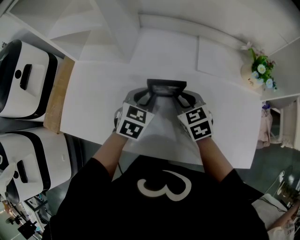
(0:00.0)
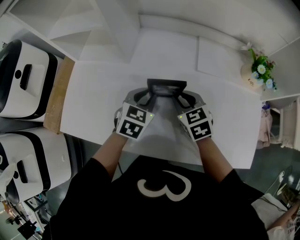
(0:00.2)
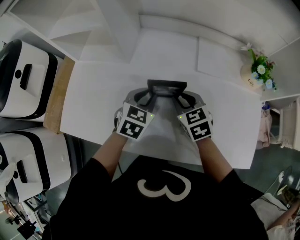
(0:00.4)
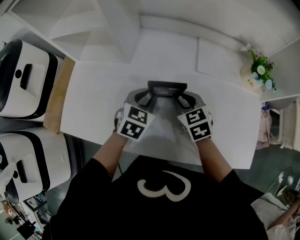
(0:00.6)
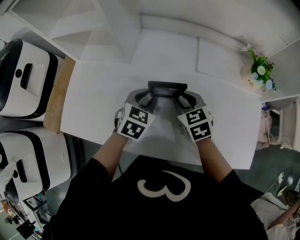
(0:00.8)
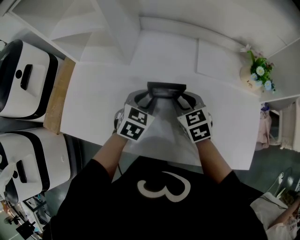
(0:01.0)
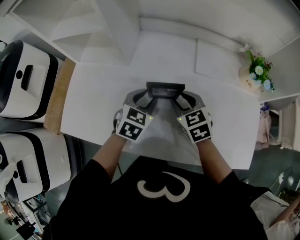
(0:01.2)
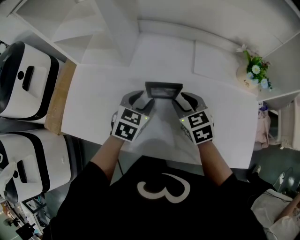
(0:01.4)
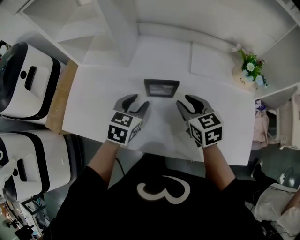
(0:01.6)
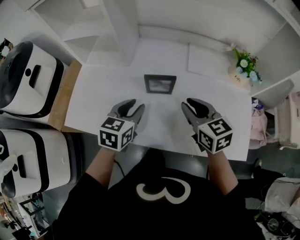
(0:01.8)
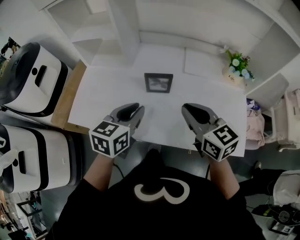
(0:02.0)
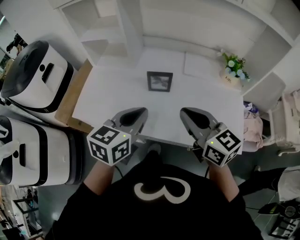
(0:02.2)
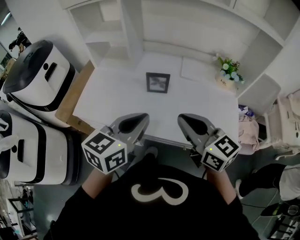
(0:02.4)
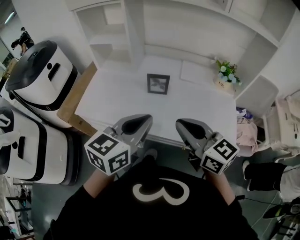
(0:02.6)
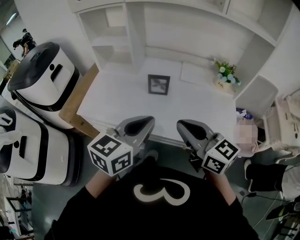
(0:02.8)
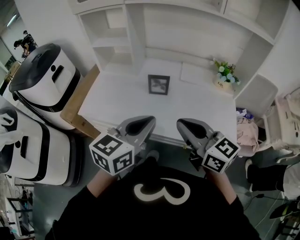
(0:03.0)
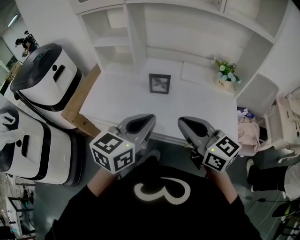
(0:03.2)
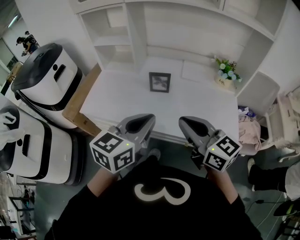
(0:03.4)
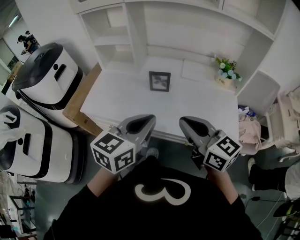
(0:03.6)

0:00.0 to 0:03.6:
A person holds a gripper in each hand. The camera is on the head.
0:00.0 to 0:01.8: The left gripper goes some 10 cm backward and upward. The right gripper shifts about 15 cm upward and backward.
0:01.8 to 0:03.6: Both grippers move backward and upward, some 30 cm. The left gripper rotates roughly 20 degrees, and closes its fingers. The right gripper swivels roughly 20 degrees, and closes.

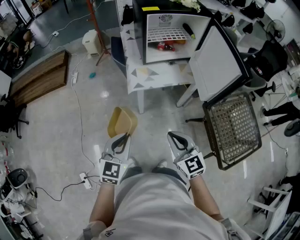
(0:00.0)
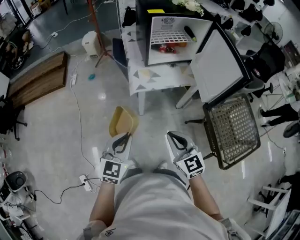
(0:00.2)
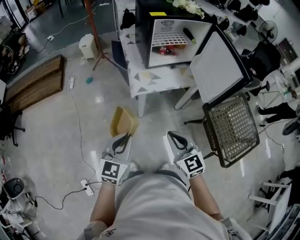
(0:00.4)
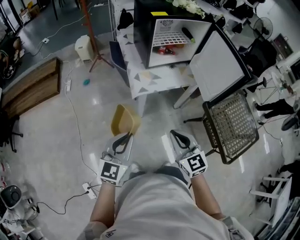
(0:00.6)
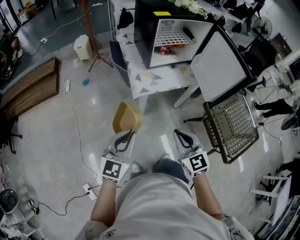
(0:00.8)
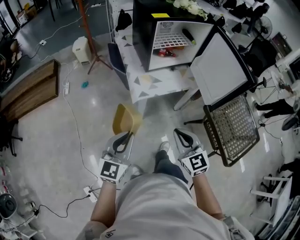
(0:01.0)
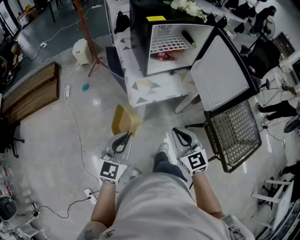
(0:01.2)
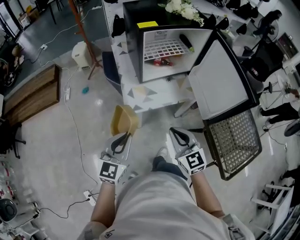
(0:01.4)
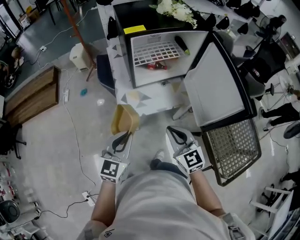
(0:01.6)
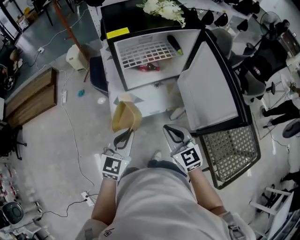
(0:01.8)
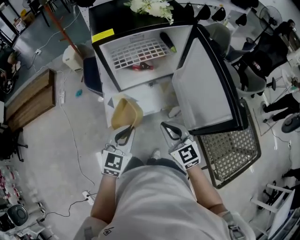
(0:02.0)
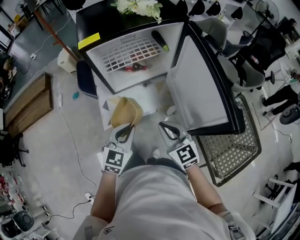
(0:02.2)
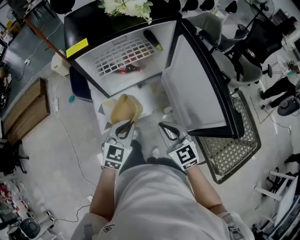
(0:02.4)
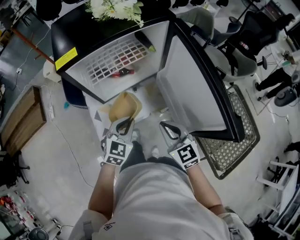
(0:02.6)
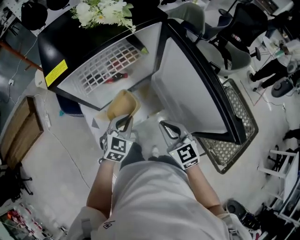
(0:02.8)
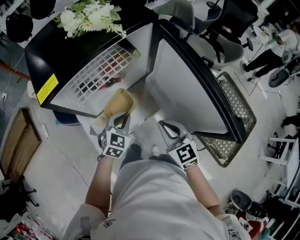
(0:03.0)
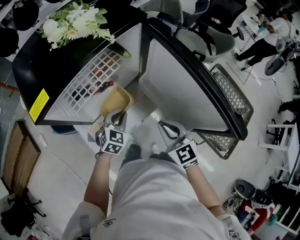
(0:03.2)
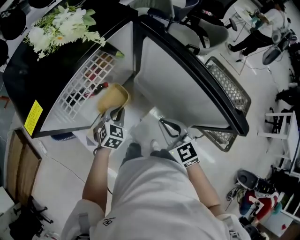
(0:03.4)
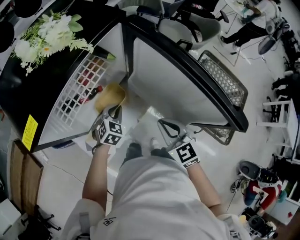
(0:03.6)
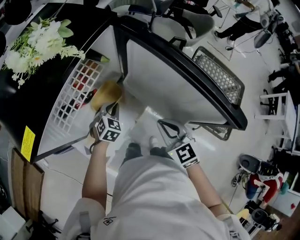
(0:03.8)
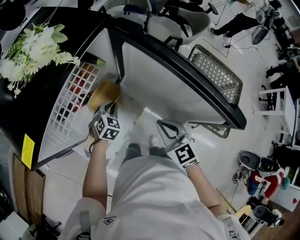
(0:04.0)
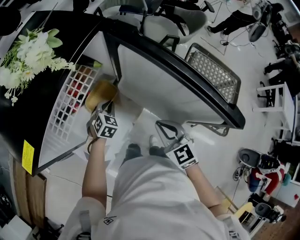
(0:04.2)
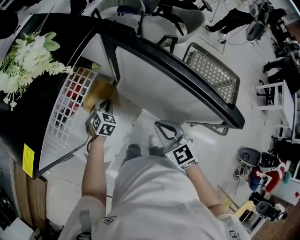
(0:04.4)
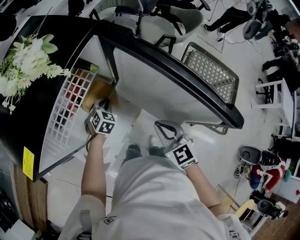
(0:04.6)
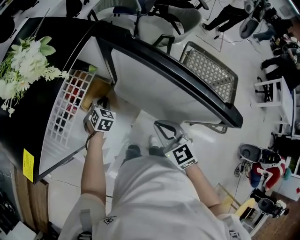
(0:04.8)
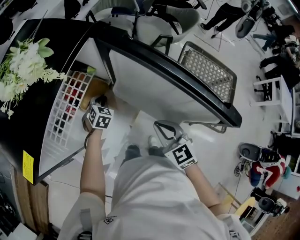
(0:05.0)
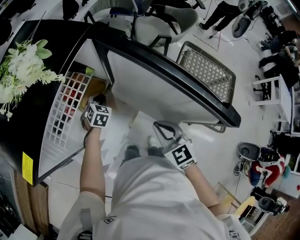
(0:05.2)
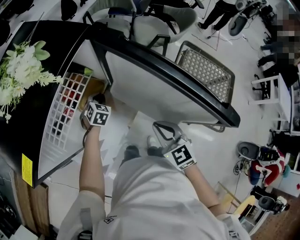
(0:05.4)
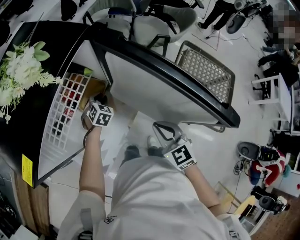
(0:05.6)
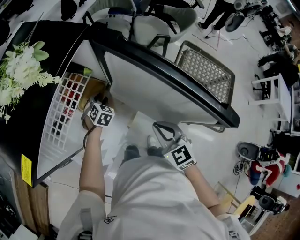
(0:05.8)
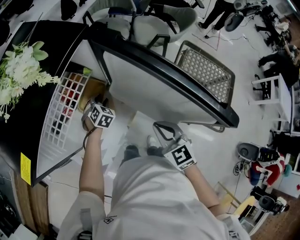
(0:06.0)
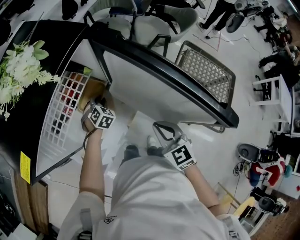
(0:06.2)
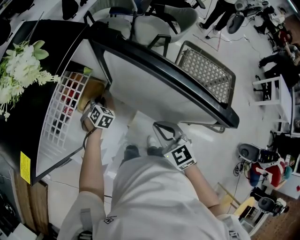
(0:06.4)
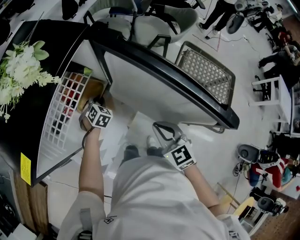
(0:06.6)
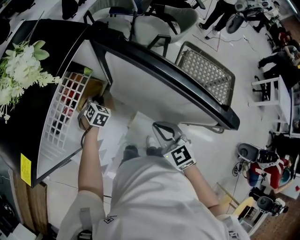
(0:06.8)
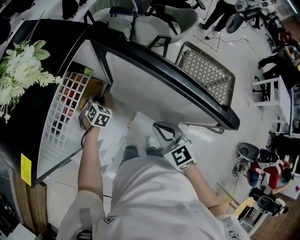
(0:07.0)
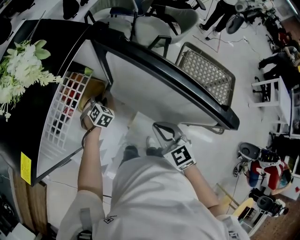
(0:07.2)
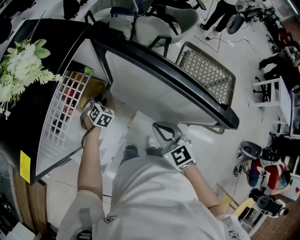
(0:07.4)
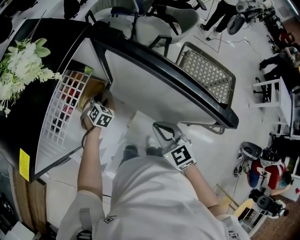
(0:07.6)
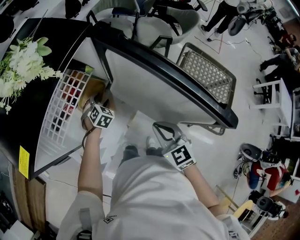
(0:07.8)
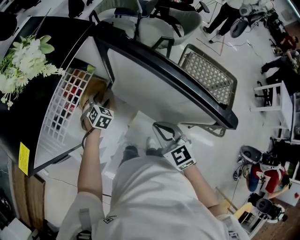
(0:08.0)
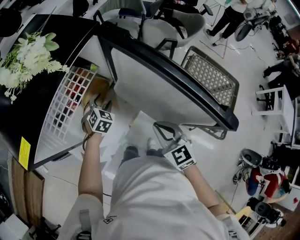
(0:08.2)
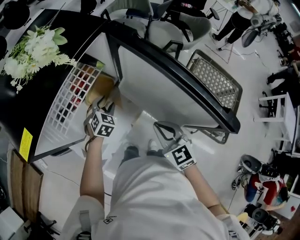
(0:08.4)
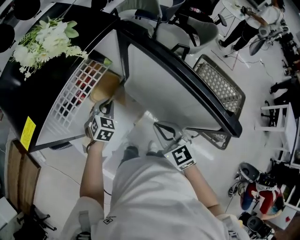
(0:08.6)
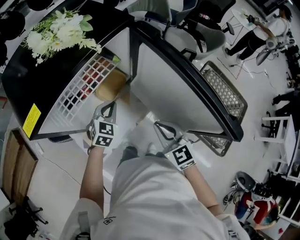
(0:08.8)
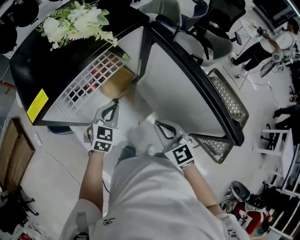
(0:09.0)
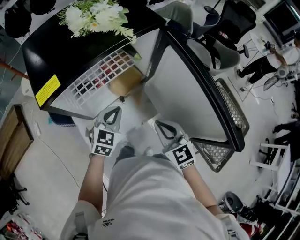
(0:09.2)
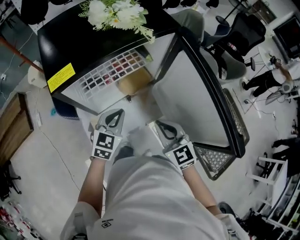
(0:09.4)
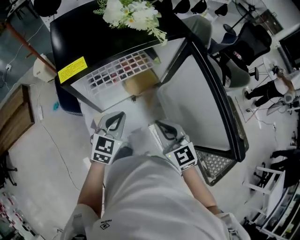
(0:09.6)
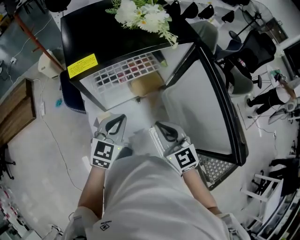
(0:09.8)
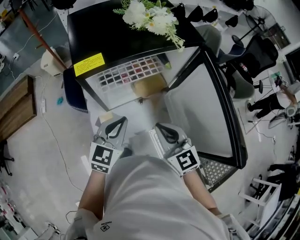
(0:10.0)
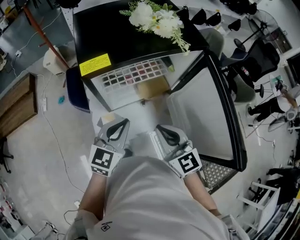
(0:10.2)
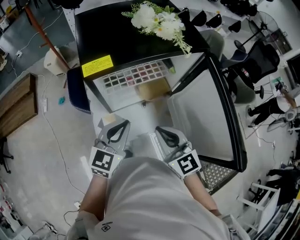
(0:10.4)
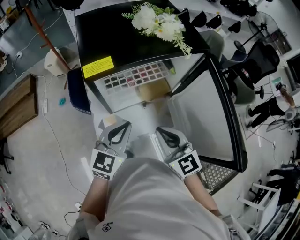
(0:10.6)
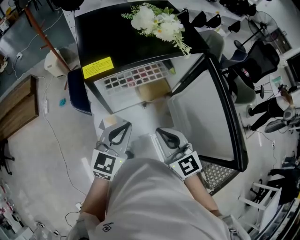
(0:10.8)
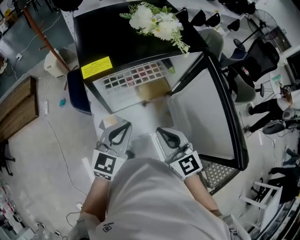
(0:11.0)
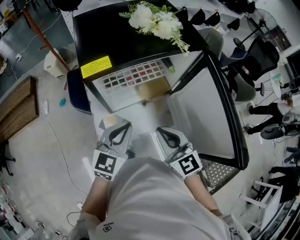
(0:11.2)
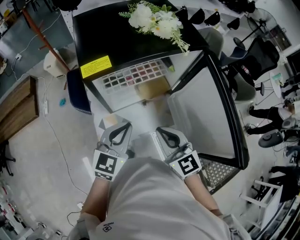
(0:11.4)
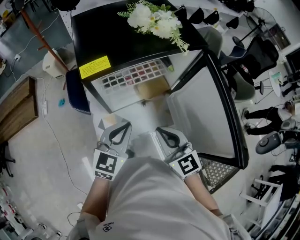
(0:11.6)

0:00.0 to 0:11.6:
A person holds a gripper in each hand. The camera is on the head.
0:00.0 to 0:01.4: Both grippers travel together forward, approximately 15 cm.
0:01.4 to 0:02.8: Both grippers move forward and to the right, roughly 30 cm. The left gripper changes its angle by approximately 30 degrees.
0:02.8 to 0:04.4: The right gripper moves approximately 5 cm, and swivels about 30 degrees. Meanwhile the left gripper travels forward and downward by approximately 20 cm, and rotates roughly 30 degrees.
0:04.4 to 0:05.8: The left gripper moves about 5 cm, and opens.
0:05.8 to 0:07.2: The grippers stay close to where they were, moving slightly.
0:07.2 to 0:08.8: The left gripper moves upward and backward, some 15 cm, turns by roughly 30 degrees, and closes.
0:08.8 to 0:10.2: The right gripper heads to the left and upward, covering roughly 15 cm, and turns by approximately 30 degrees, while the left gripper goes some 20 cm upward, backward and to the left, and turns by some 30 degrees.
0:10.2 to 0:11.6: There are only small adjustments of the grippers.

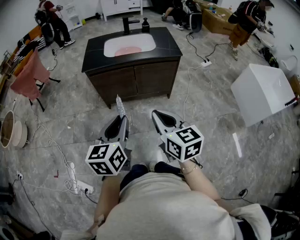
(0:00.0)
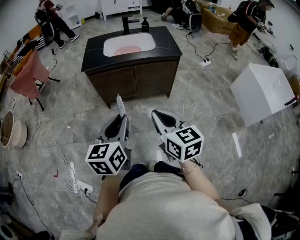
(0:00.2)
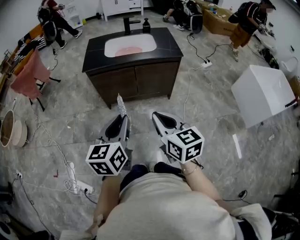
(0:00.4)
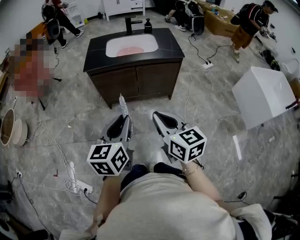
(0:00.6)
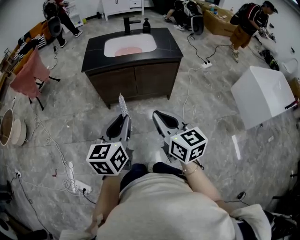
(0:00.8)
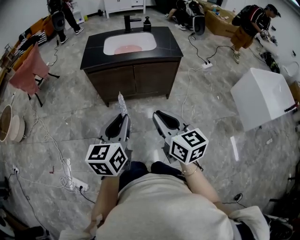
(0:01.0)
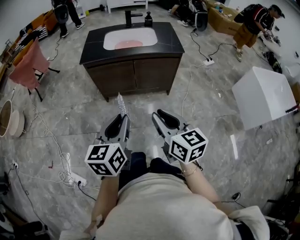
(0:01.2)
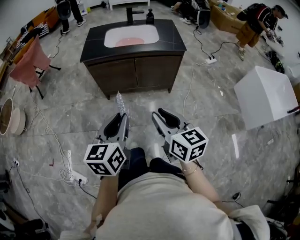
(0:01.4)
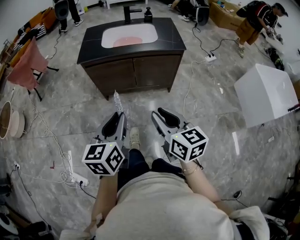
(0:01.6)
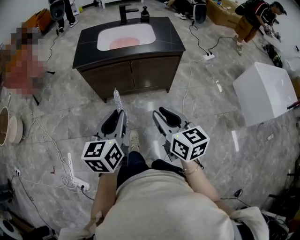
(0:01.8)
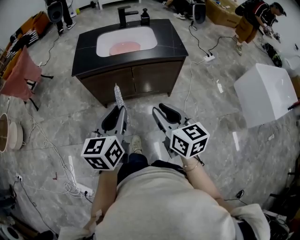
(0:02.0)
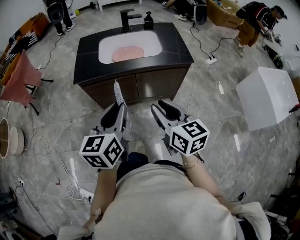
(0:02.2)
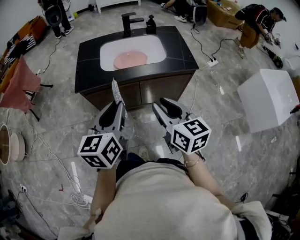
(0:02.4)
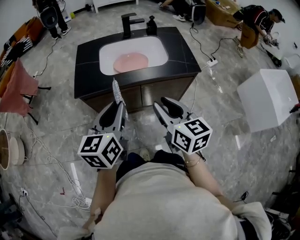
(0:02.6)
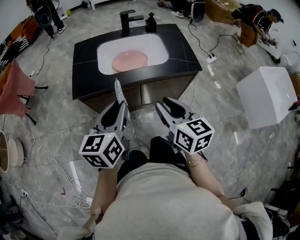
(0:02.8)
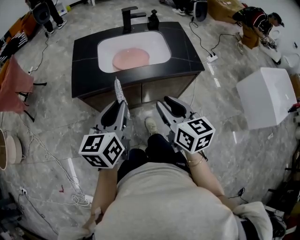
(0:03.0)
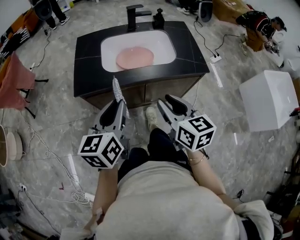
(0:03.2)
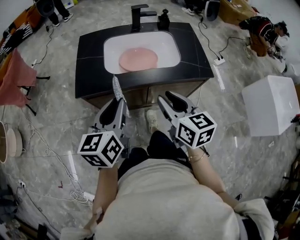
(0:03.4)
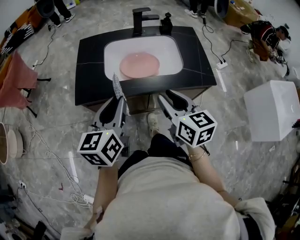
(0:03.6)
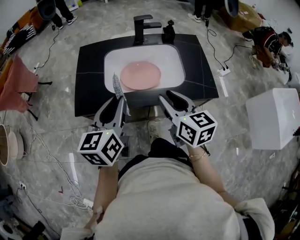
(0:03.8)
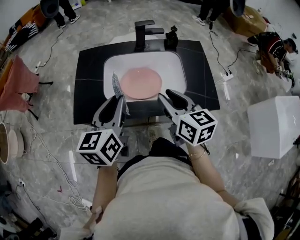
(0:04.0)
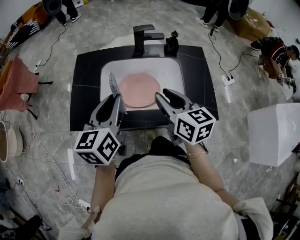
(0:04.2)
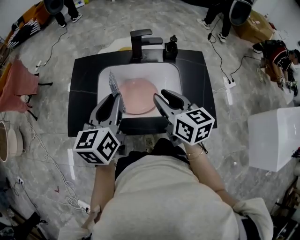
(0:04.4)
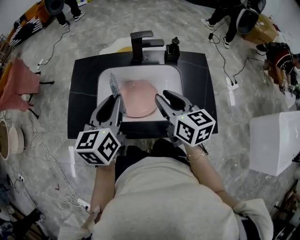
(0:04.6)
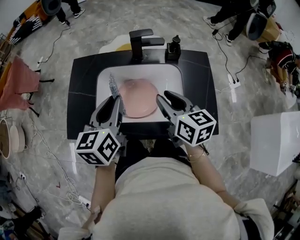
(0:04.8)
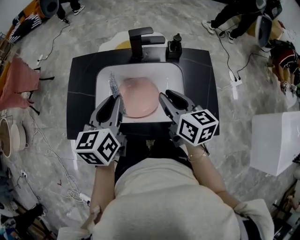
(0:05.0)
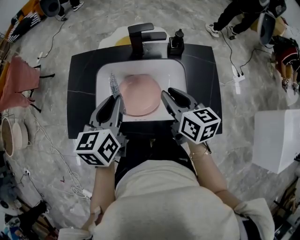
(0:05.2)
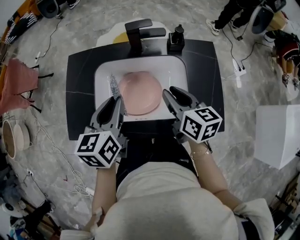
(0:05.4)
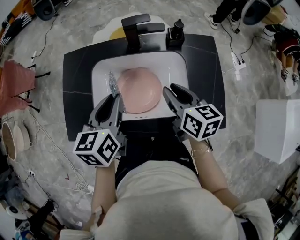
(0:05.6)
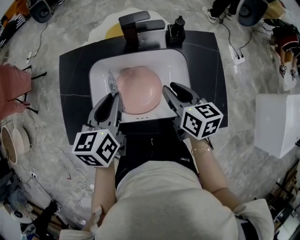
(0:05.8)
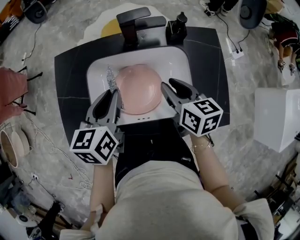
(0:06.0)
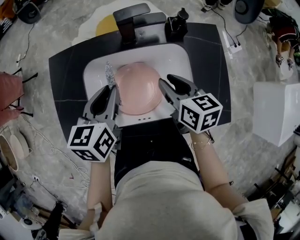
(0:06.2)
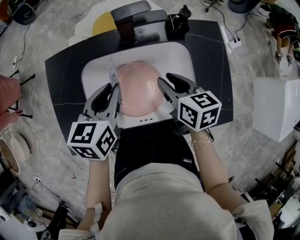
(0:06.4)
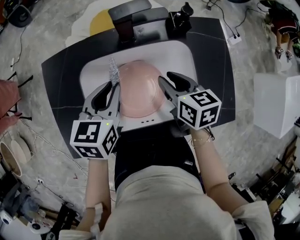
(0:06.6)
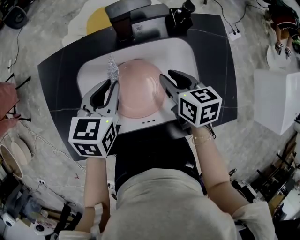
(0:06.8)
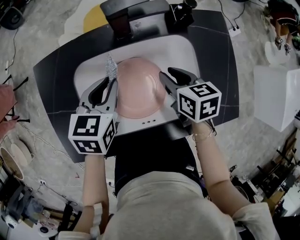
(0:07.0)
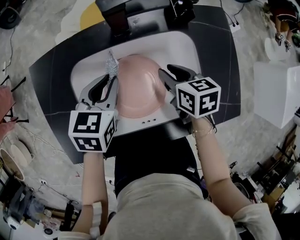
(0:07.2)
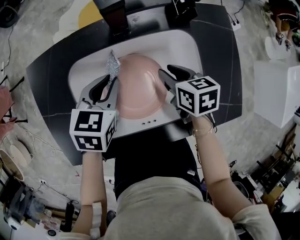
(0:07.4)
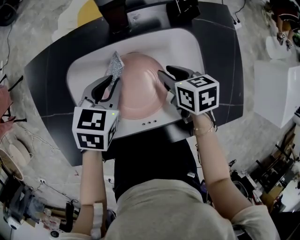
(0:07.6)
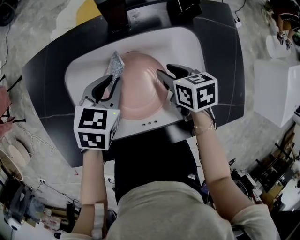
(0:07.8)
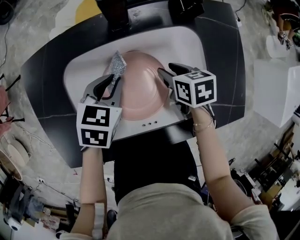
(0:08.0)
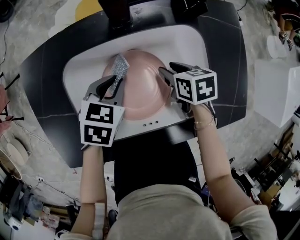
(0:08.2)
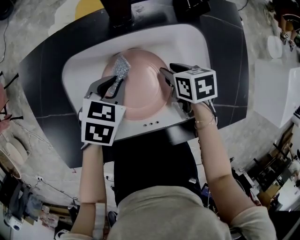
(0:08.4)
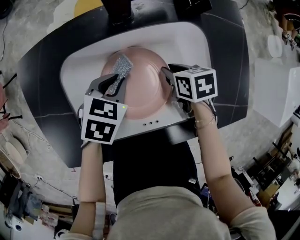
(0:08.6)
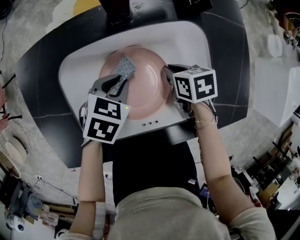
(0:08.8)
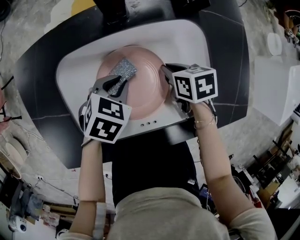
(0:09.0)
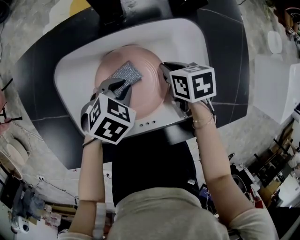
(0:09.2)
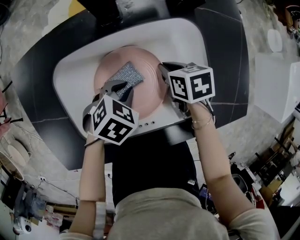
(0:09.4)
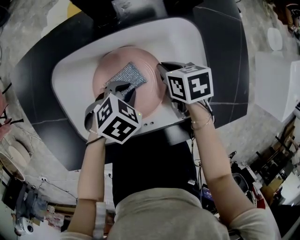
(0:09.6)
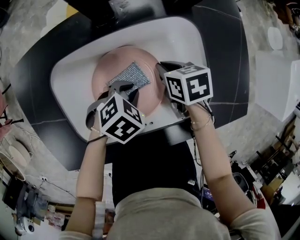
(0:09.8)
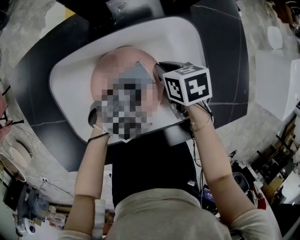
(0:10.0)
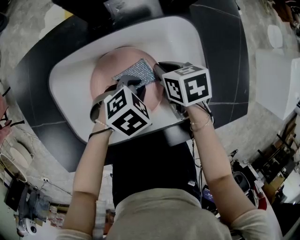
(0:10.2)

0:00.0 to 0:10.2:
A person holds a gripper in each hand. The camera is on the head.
0:00.0 to 0:01.4: The right gripper opens up.
0:01.4 to 0:03.0: Both grippers move forward, roughly 35 cm.
0:03.0 to 0:04.4: Both grippers move forward, some 30 cm.
0:04.4 to 0:05.8: Both grippers travel together downward and forward, approximately 10 cm.
0:05.8 to 0:07.2: The two grippers go about 15 cm downward and forward. The left gripper swivels some 30 degrees.
0:07.2 to 0:08.8: The grippers both shift downward by roughly 10 cm. The right gripper closes its fingers; the left gripper rotates some 20 degrees.
0:08.8 to 0:10.2: The left gripper shifts by approximately 10 cm, and changes its angle by roughly 30 degrees.
